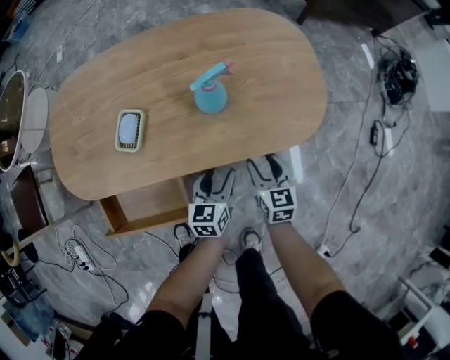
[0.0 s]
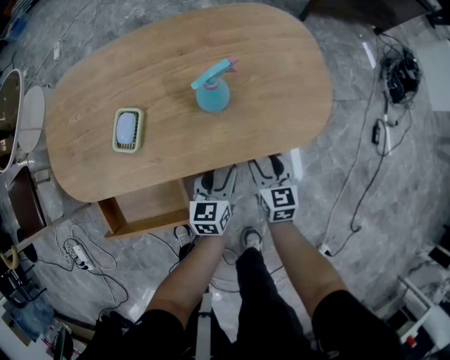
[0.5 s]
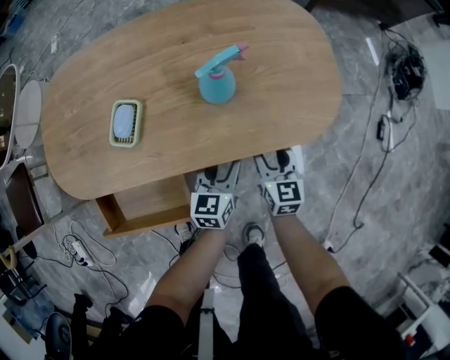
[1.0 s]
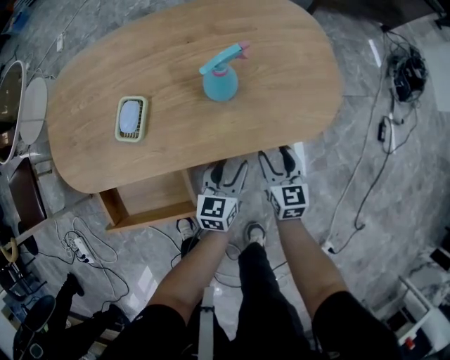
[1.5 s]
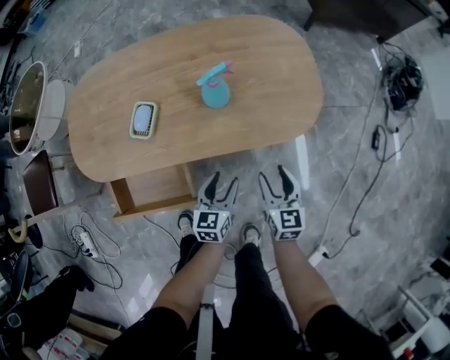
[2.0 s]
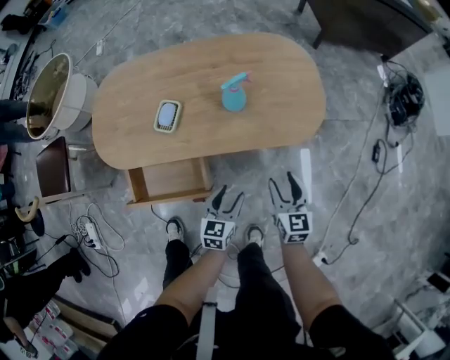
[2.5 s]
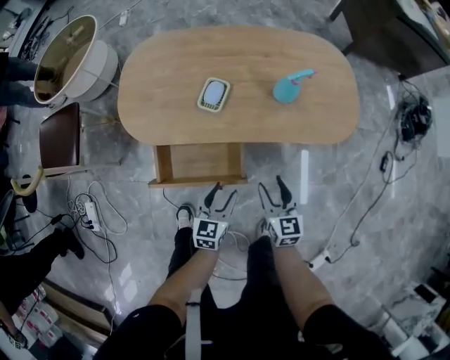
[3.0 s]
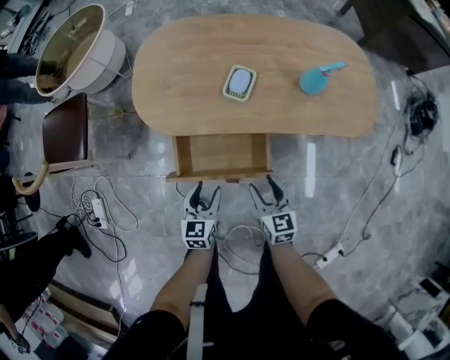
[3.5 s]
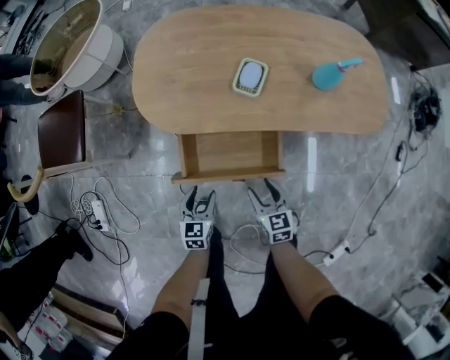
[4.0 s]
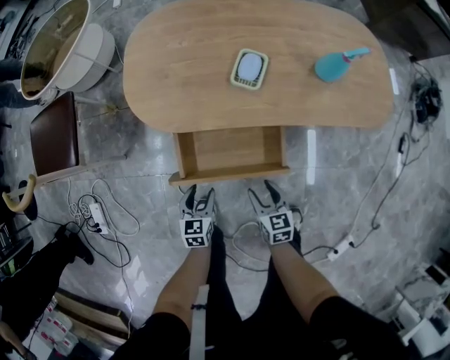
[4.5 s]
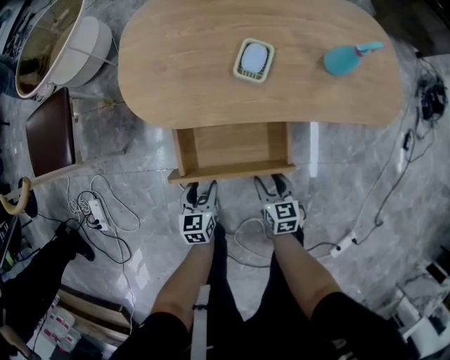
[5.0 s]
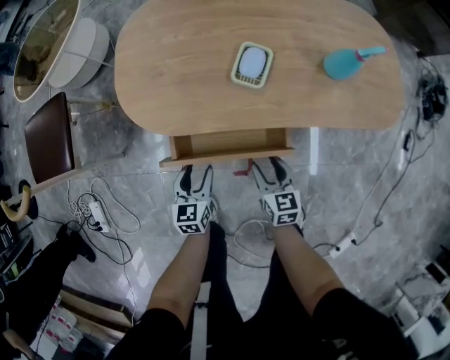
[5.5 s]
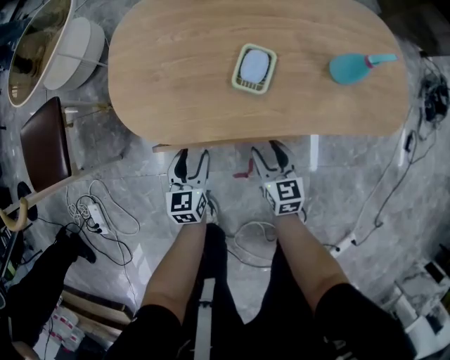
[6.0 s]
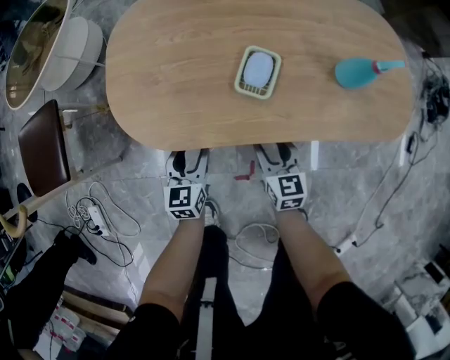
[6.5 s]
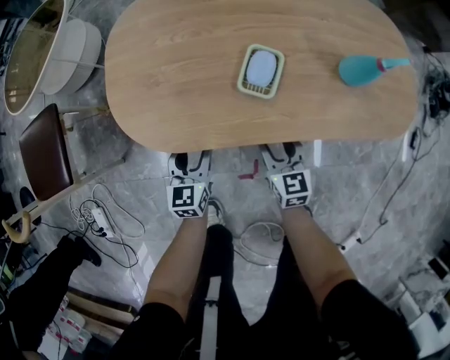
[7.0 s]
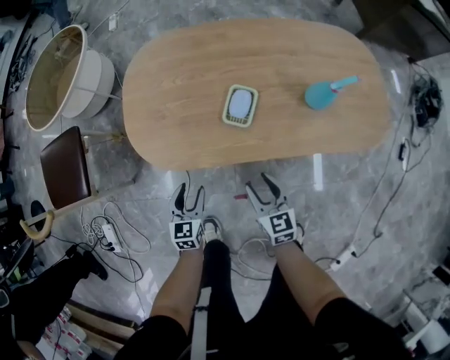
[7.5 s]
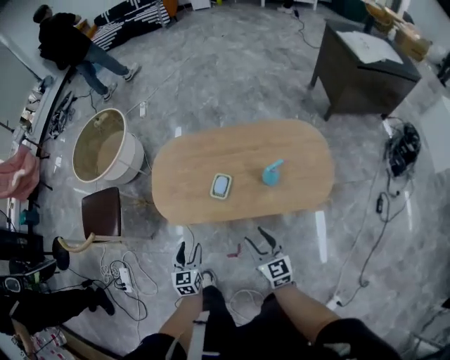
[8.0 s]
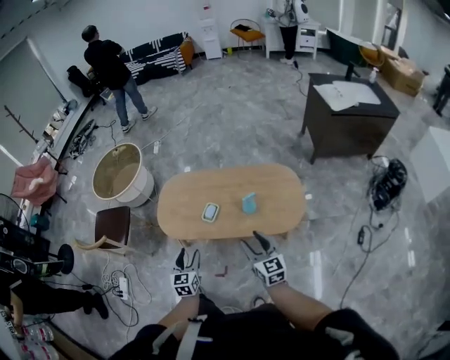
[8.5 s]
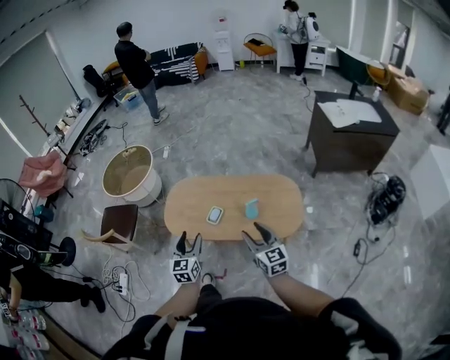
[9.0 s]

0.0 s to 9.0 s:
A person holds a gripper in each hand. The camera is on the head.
0.0 to 2.0 s: The left gripper goes roughly 5 cm backward. Meanwhile the right gripper is displaced upward and backward by about 10 cm.
2.0 to 4.5 s: The left gripper travels to the left by about 40 cm, while the right gripper shifts approximately 35 cm to the left and backward, and turns by approximately 20 degrees.
4.5 to 7.0 s: The grippers both shift forward by about 20 cm.
7.0 to 9.0 s: Both grippers move upward, roughly 60 cm. The right gripper turns by roughly 20 degrees.

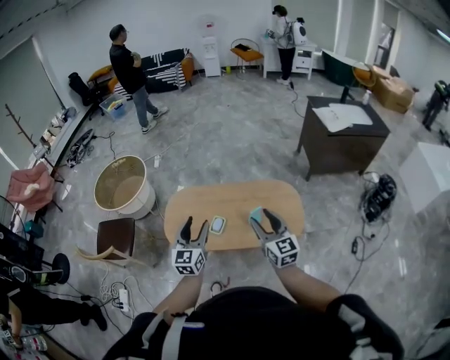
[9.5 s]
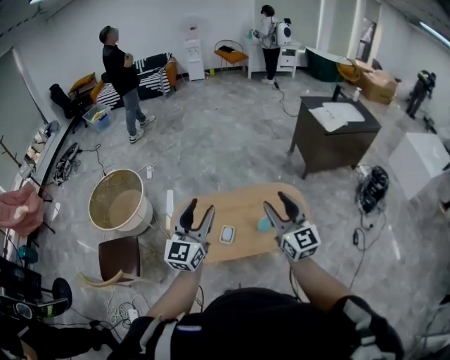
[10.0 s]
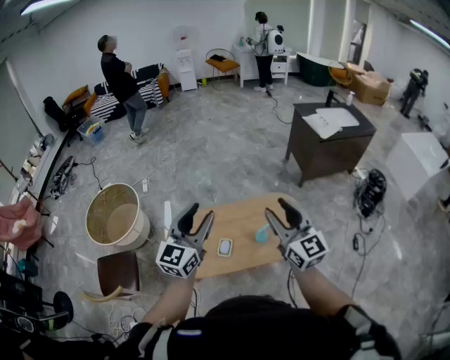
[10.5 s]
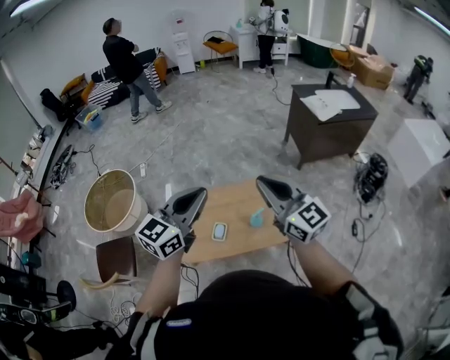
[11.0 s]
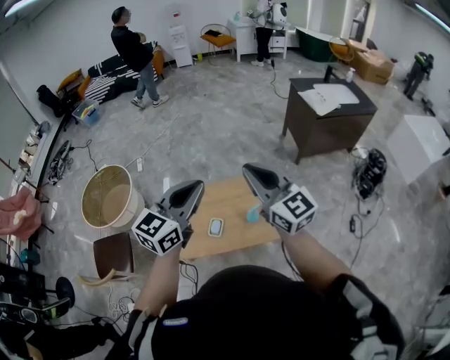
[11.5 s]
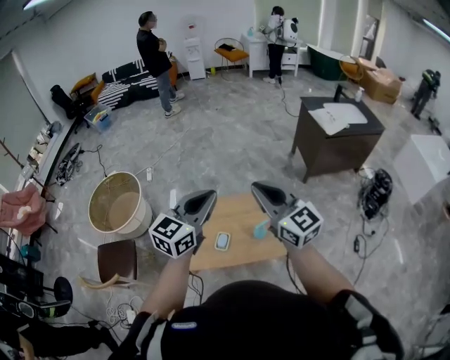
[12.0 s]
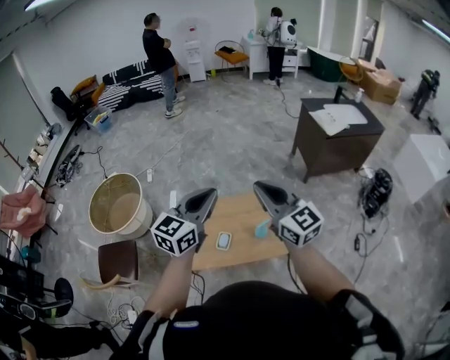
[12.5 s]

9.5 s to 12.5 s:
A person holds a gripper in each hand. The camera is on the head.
9.5 to 11.0 s: The left gripper moves upward and forward, roughly 25 cm, swivels roughly 40 degrees, and closes its fingers. Meanwhile the right gripper is displaced upward by some 20 cm, and closes up.
11.0 to 12.5 s: The grippers stay close to where they were, moving slightly.

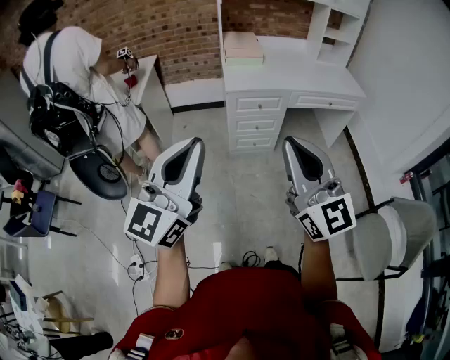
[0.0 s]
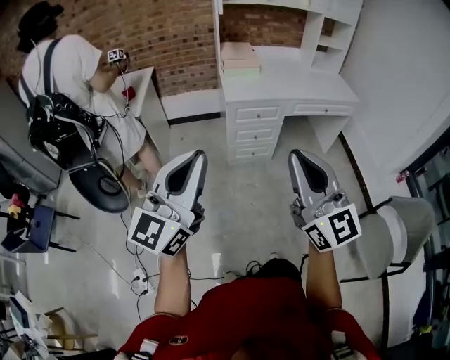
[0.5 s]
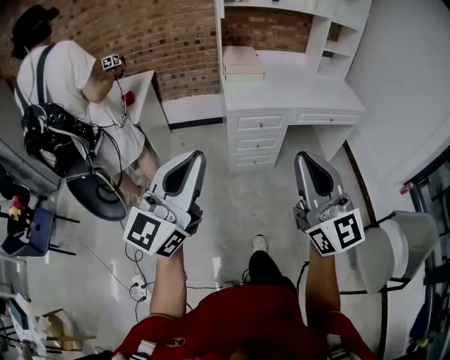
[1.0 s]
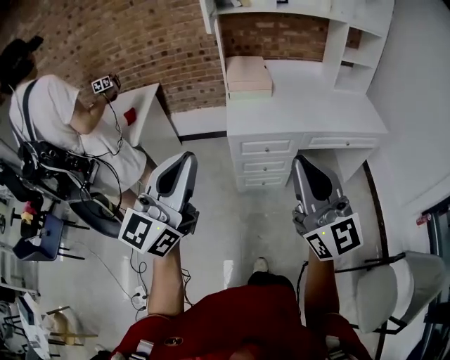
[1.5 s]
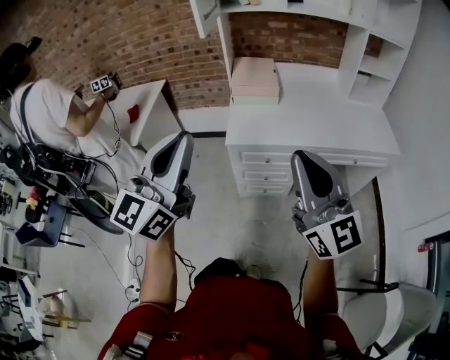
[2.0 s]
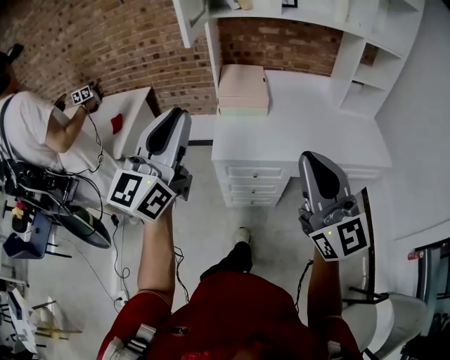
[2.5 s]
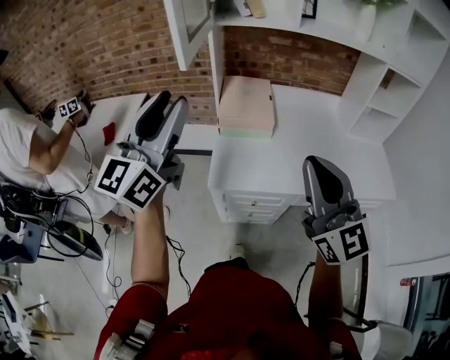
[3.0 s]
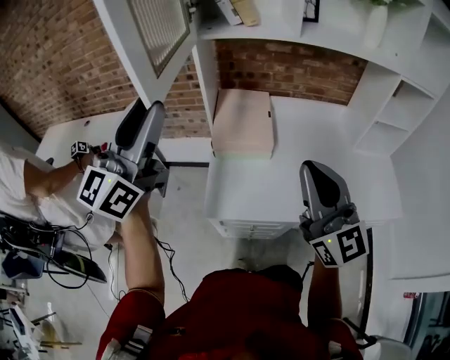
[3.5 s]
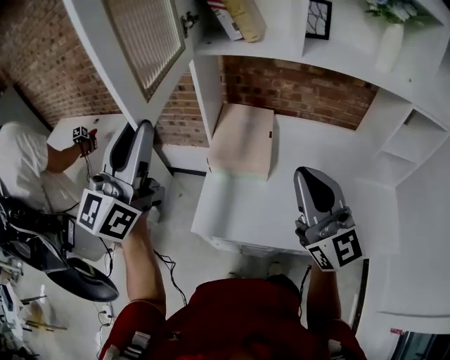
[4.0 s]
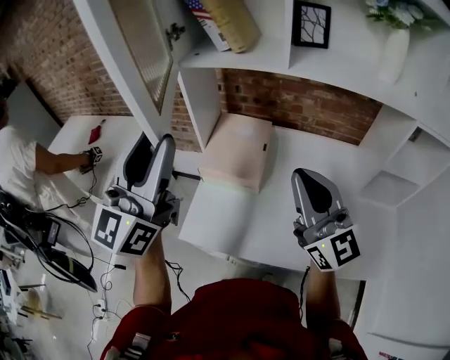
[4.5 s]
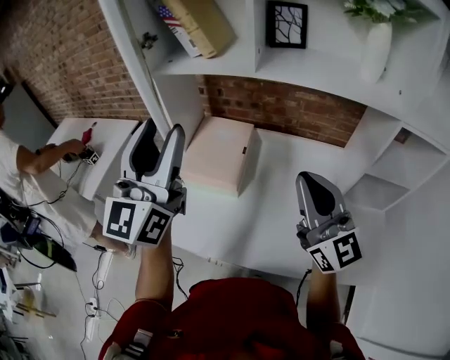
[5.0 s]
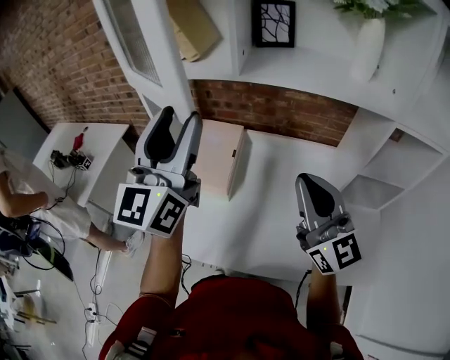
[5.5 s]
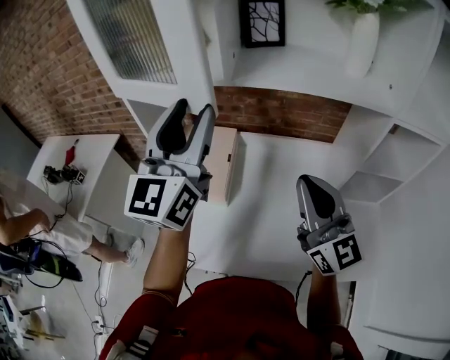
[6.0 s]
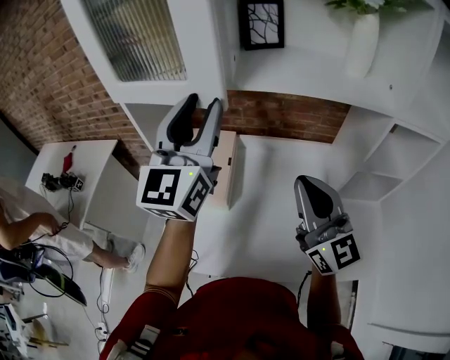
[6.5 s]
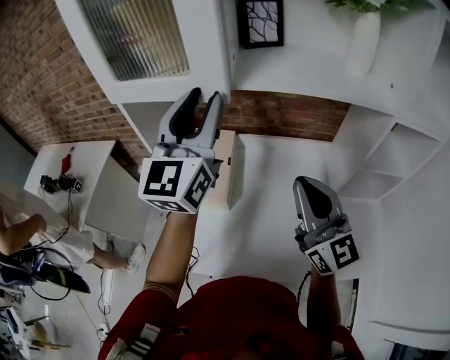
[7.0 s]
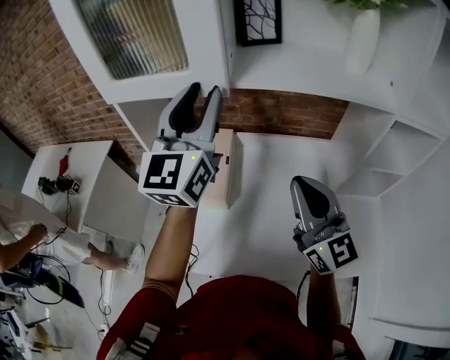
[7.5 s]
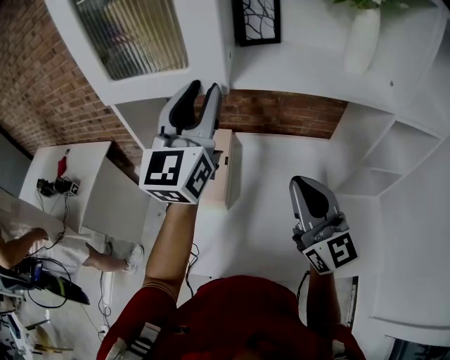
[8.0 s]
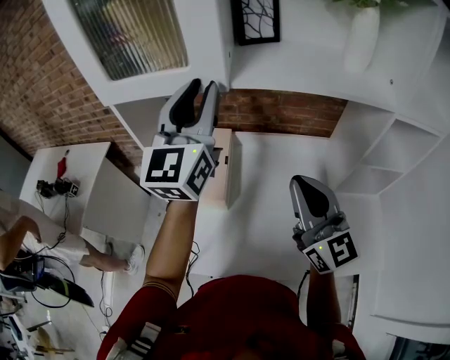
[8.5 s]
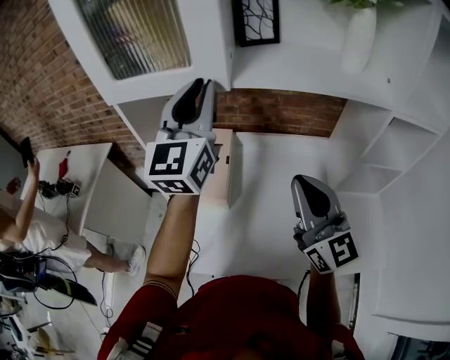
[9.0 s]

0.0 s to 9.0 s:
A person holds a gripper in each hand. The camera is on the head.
0.0 to 2.0 s: Both grippers move forward, approximately 35 cm.
2.0 to 4.5 s: The pair of grippers is taken forward, approximately 40 cm. The left gripper opens its fingers.
4.5 to 7.0 s: The right gripper shifts roughly 10 cm to the right and forward. The left gripper moves to the right and forward, about 25 cm.
7.0 to 9.0 s: The grippers move only a little.

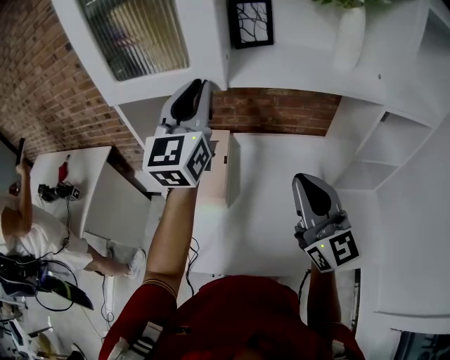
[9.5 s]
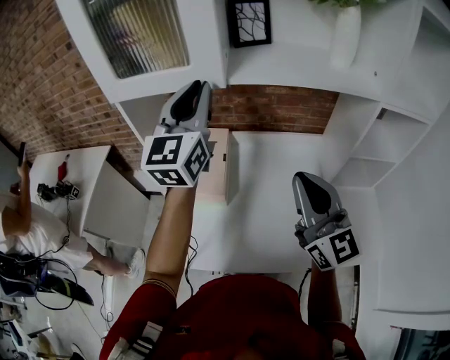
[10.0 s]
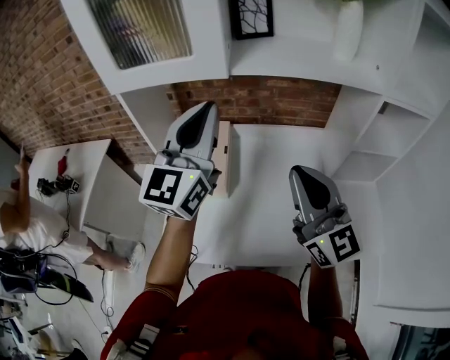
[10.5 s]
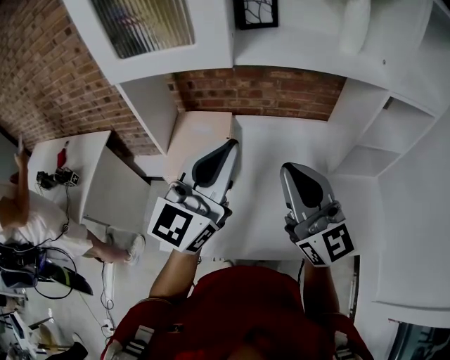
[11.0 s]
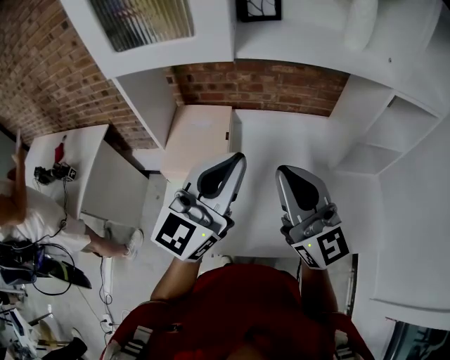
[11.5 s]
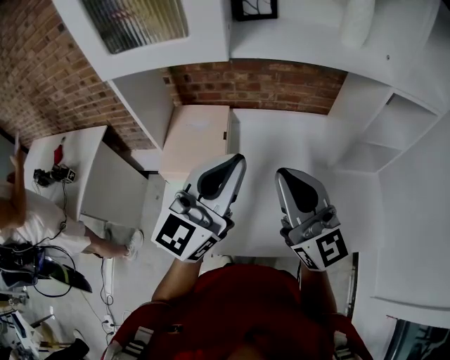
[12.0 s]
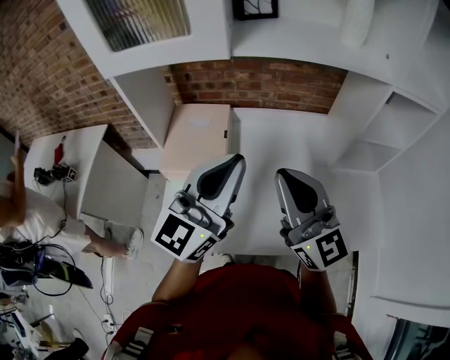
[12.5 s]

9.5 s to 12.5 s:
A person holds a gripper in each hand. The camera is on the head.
9.5 to 11.0 s: The left gripper shifts some 15 cm backward and downward, and swivels about 20 degrees.
11.0 to 12.5 s: The grippers stay close to where they were, moving slightly.

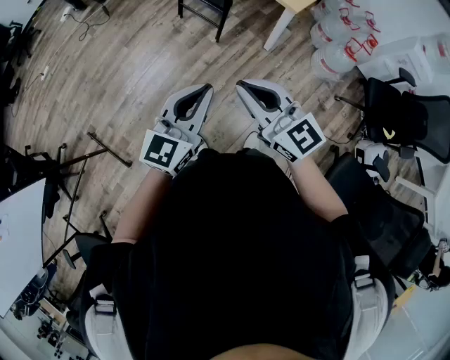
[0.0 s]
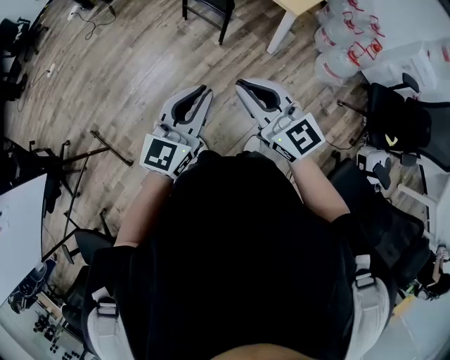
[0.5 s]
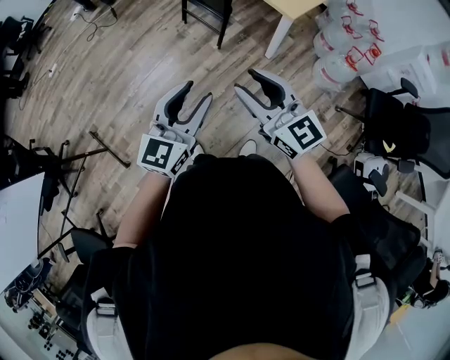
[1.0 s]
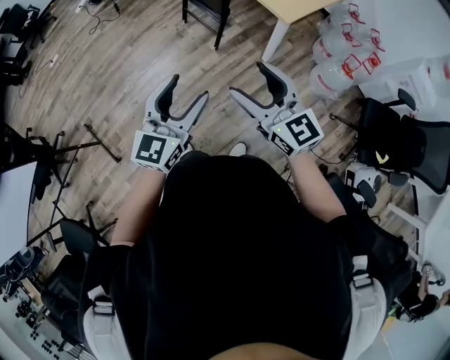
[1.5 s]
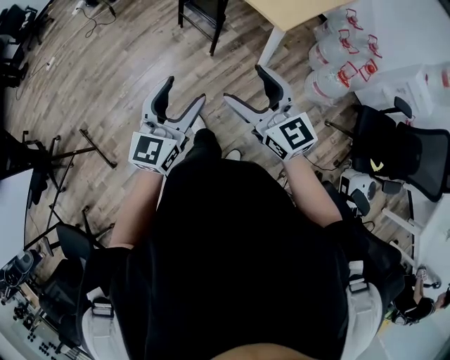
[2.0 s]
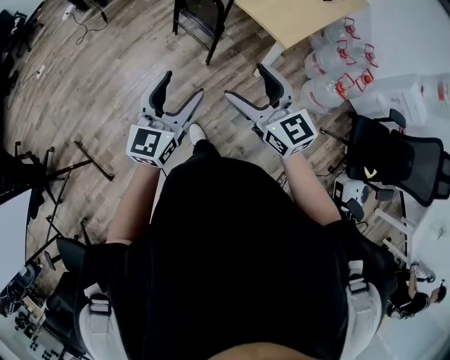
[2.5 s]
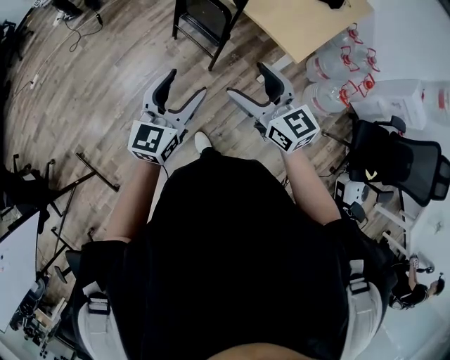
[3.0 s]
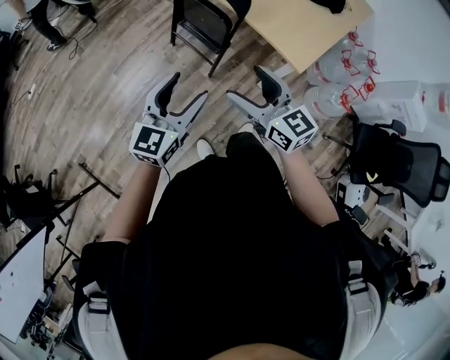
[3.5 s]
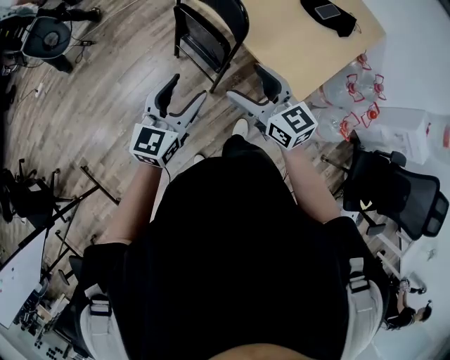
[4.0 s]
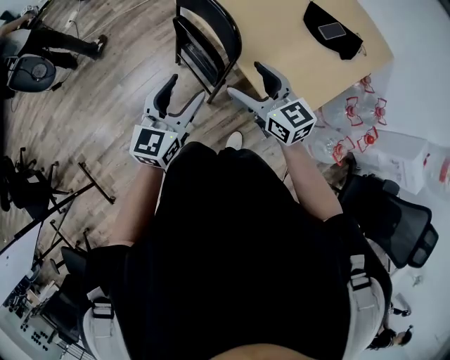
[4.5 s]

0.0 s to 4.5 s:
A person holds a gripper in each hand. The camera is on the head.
0.0 to 2.0 s: The grippers both shift to the right and forward by approximately 15 cm. The right gripper opens; the left gripper opens up.
2.0 to 4.5 s: Both grippers are carried forward, about 50 cm.
